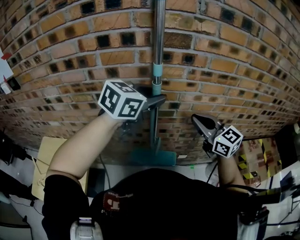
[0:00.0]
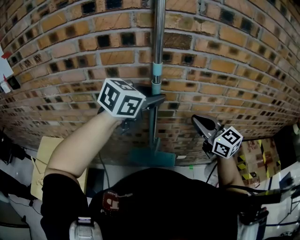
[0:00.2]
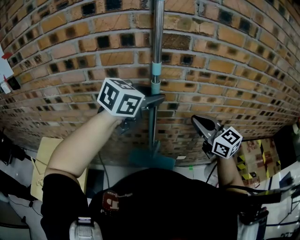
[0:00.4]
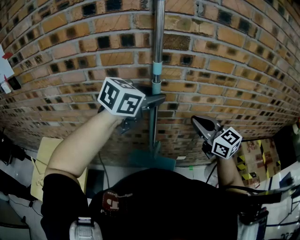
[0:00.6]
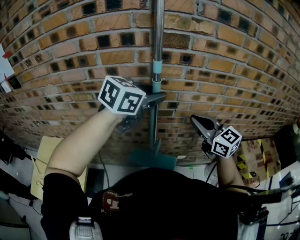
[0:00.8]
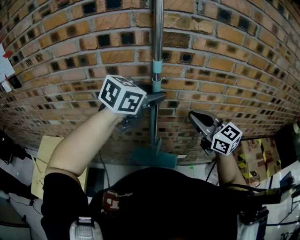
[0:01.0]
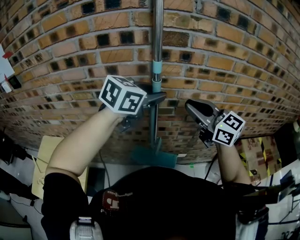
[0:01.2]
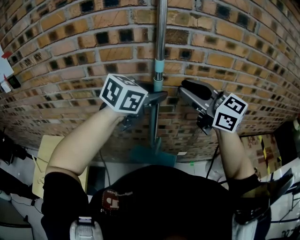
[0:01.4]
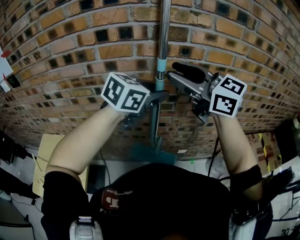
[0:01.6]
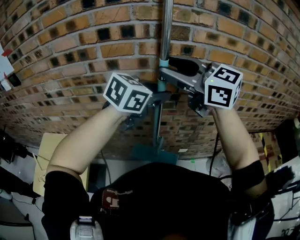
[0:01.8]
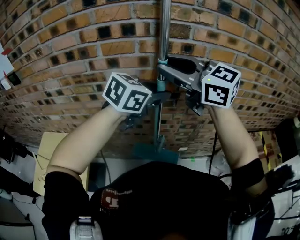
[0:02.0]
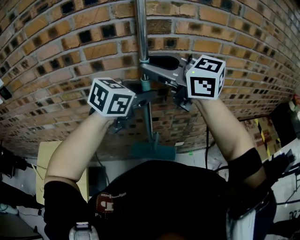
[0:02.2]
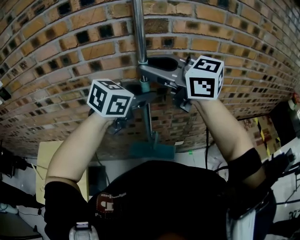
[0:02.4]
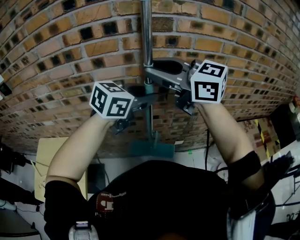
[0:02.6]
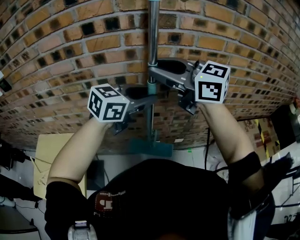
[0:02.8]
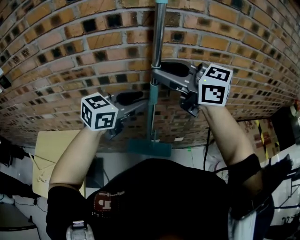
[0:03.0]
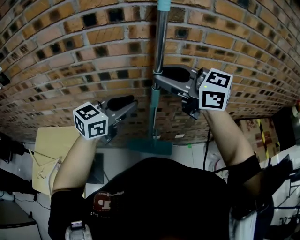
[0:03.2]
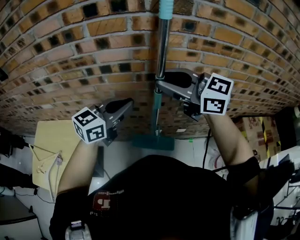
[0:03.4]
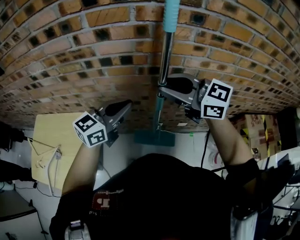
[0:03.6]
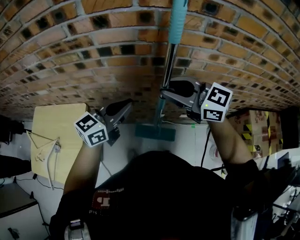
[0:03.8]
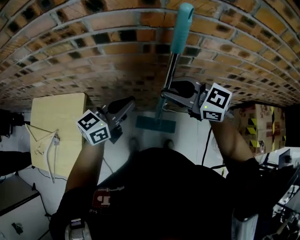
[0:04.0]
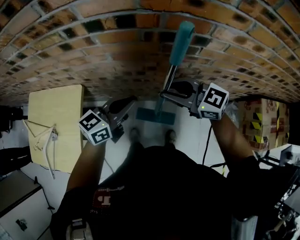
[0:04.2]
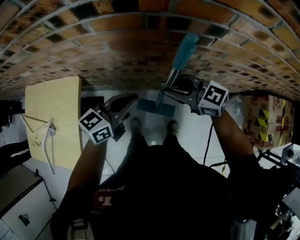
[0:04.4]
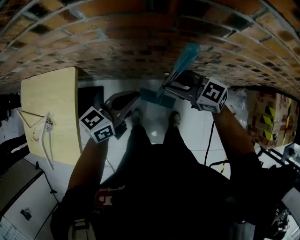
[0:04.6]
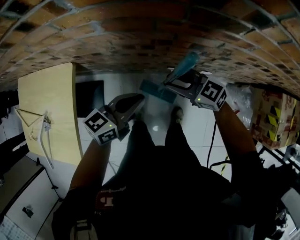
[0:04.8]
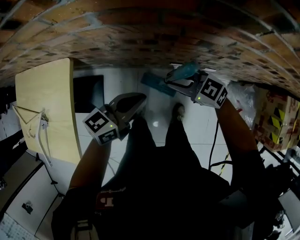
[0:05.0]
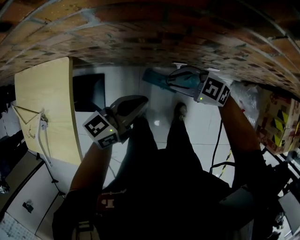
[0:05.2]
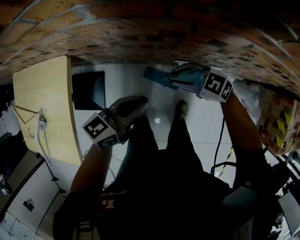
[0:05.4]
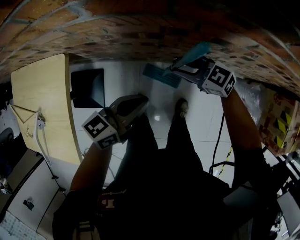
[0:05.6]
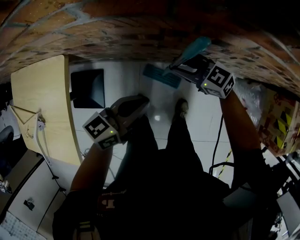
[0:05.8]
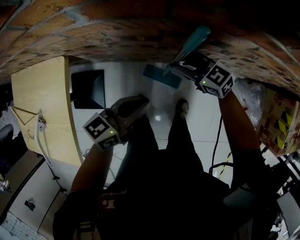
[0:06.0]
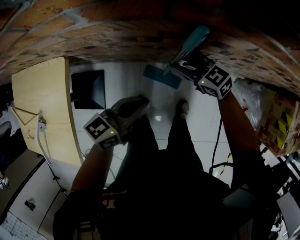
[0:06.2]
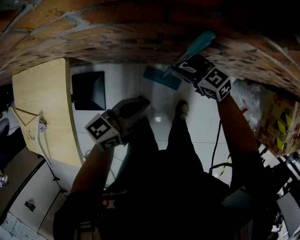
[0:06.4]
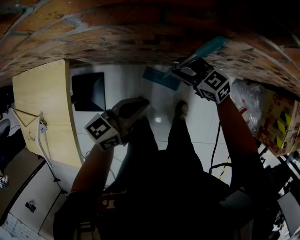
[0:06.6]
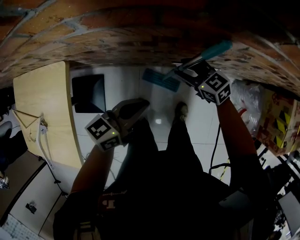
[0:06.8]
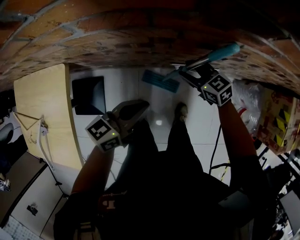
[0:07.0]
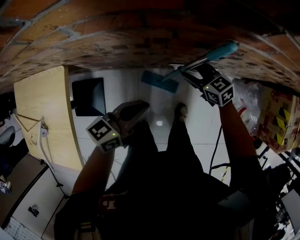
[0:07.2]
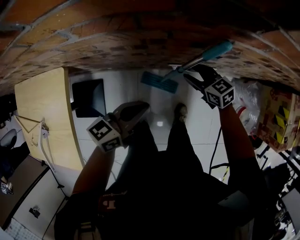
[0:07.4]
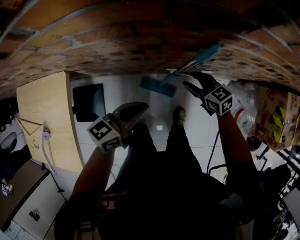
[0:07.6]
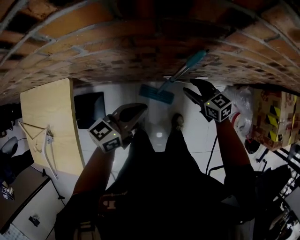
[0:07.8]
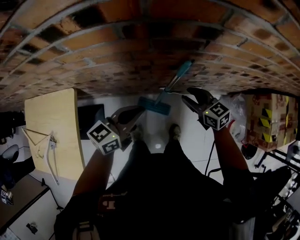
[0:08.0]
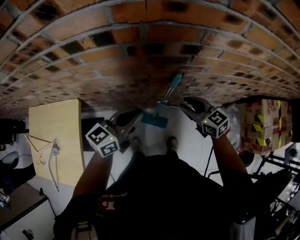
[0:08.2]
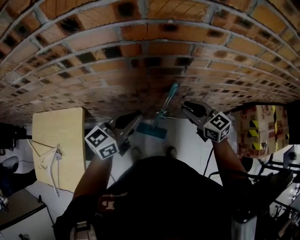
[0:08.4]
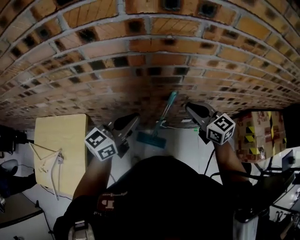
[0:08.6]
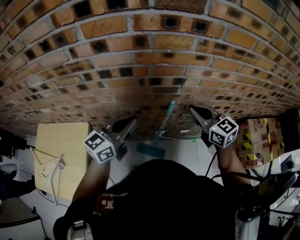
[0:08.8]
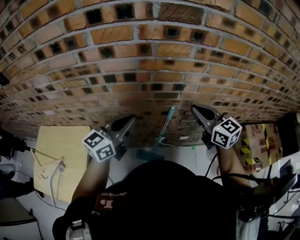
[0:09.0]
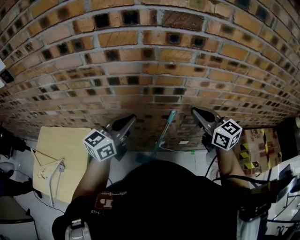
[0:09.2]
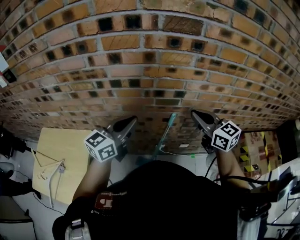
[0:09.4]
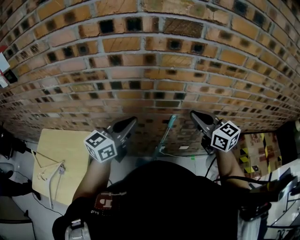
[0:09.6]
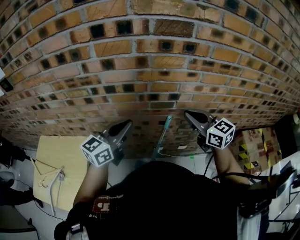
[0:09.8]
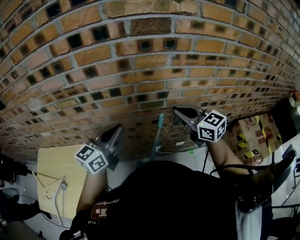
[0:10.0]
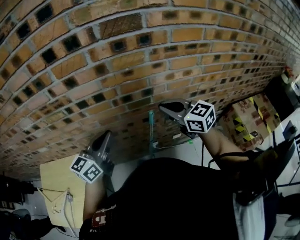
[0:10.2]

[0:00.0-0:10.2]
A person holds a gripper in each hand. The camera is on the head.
0:00.0 to 0:01.4: The right gripper shifts some 15 cm upward and to the left, and opens.
0:01.4 to 0:03.0: The left gripper heads downward, covering some 5 cm; the right gripper is displaced to the left by approximately 5 cm.
0:03.0 to 0:04.4: The two grippers go approximately 35 cm downward. The right gripper turns by roughly 20 degrees. The left gripper rotates some 30 degrees, and closes.
0:04.4 to 0:05.8: The right gripper travels downward by about 20 cm, while the left gripper shifts approximately 15 cm downward.
0:05.8 to 0:07.2: The right gripper moves approximately 10 cm, rotates approximately 20 degrees, and opens.
0:07.2 to 0:08.8: The grippers both shift upward by about 35 cm. The left gripper rotates approximately 30 degrees. The right gripper turns by roughly 30 degrees, and closes.
0:08.8 to 0:10.2: The right gripper shifts by about 5 cm.

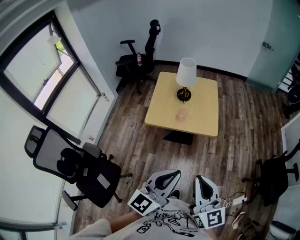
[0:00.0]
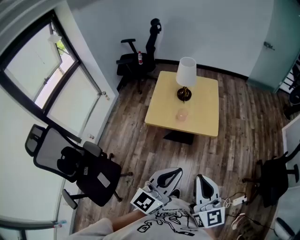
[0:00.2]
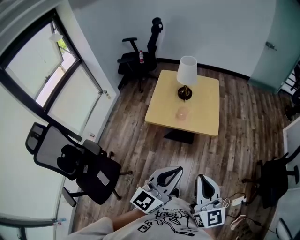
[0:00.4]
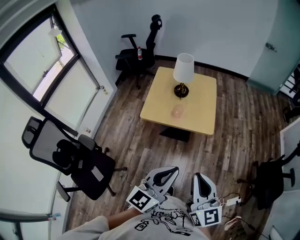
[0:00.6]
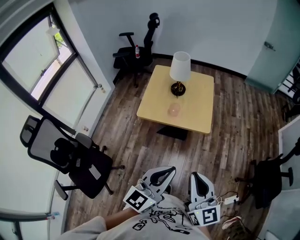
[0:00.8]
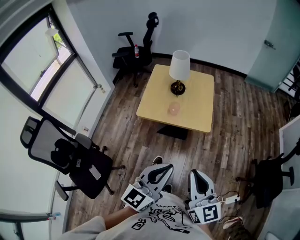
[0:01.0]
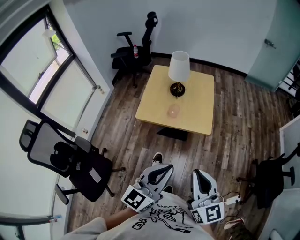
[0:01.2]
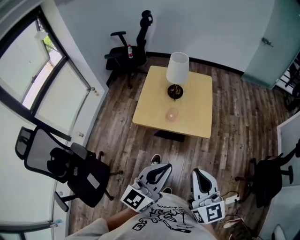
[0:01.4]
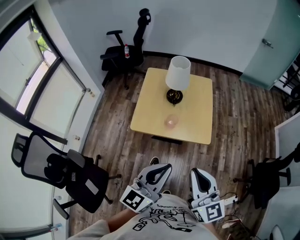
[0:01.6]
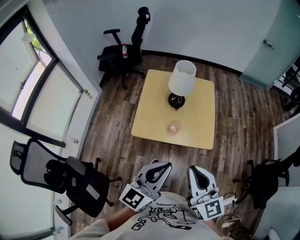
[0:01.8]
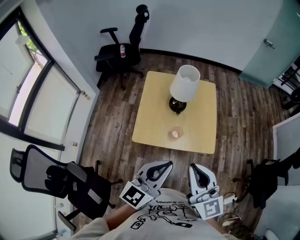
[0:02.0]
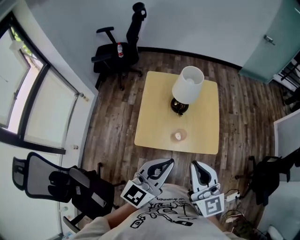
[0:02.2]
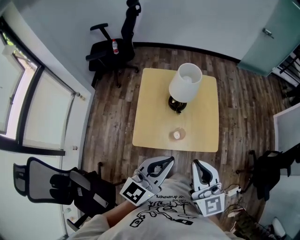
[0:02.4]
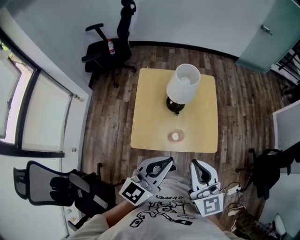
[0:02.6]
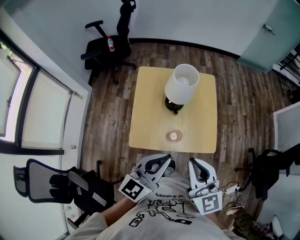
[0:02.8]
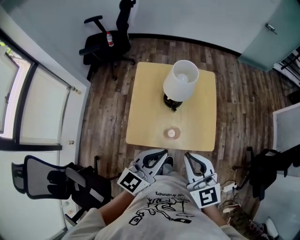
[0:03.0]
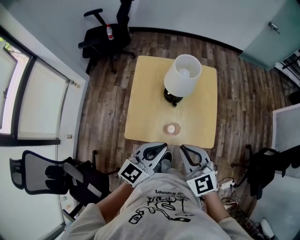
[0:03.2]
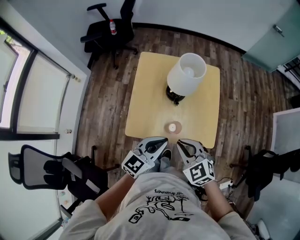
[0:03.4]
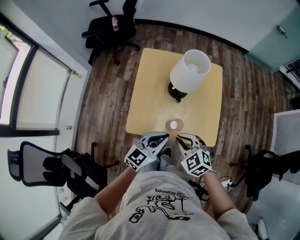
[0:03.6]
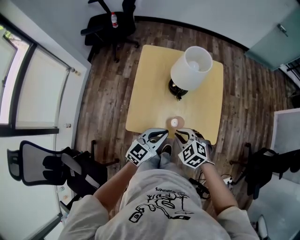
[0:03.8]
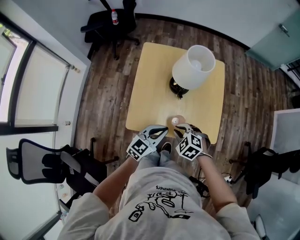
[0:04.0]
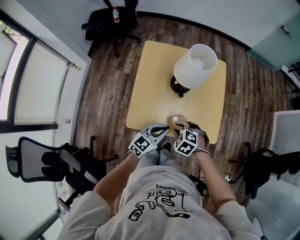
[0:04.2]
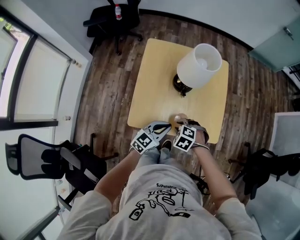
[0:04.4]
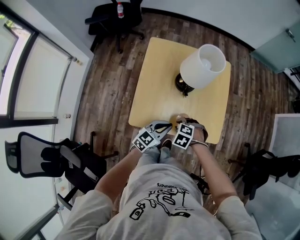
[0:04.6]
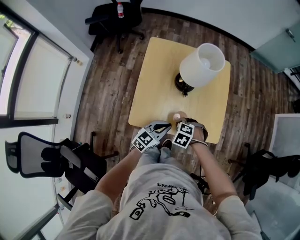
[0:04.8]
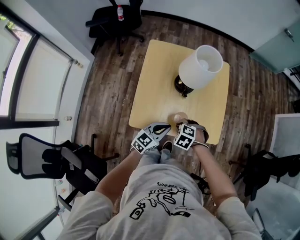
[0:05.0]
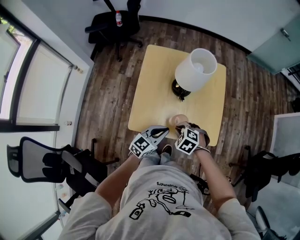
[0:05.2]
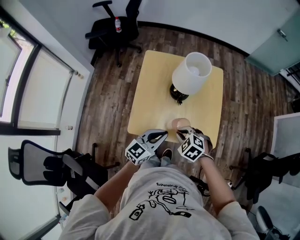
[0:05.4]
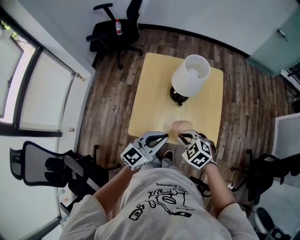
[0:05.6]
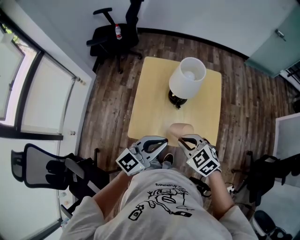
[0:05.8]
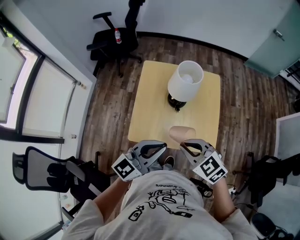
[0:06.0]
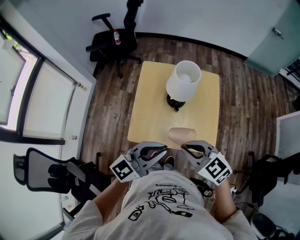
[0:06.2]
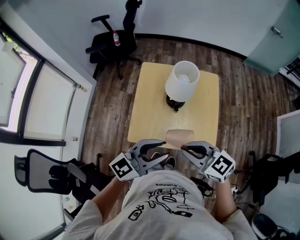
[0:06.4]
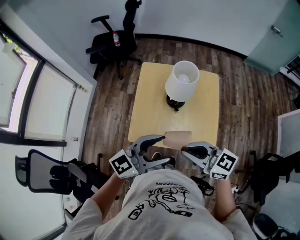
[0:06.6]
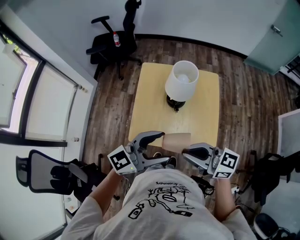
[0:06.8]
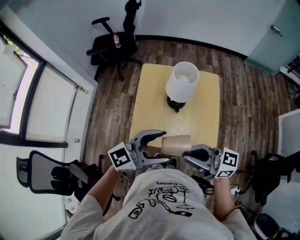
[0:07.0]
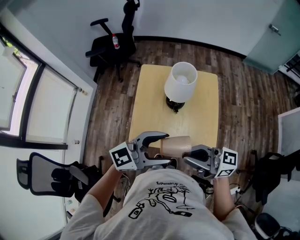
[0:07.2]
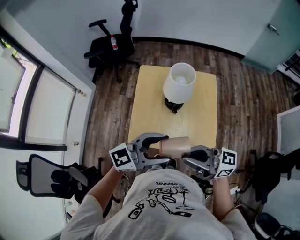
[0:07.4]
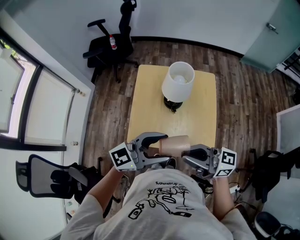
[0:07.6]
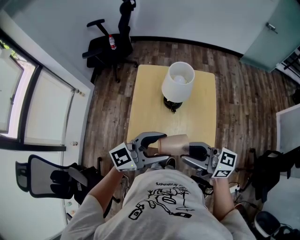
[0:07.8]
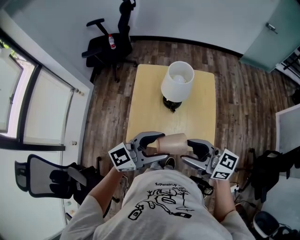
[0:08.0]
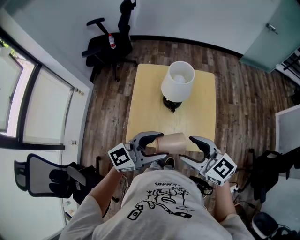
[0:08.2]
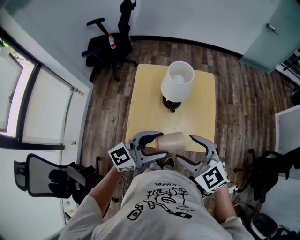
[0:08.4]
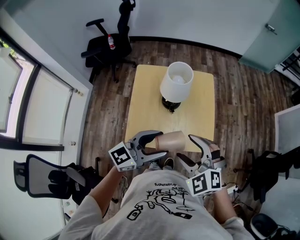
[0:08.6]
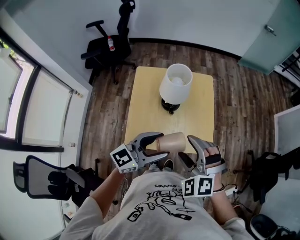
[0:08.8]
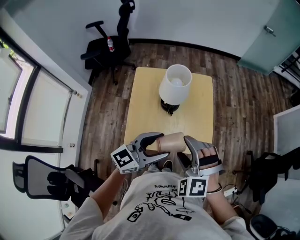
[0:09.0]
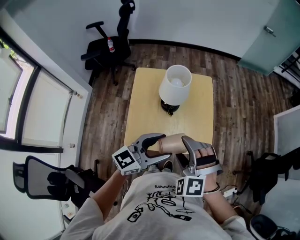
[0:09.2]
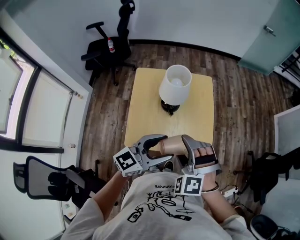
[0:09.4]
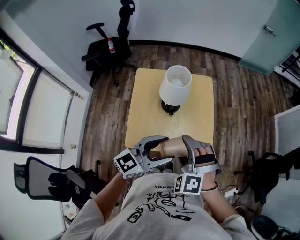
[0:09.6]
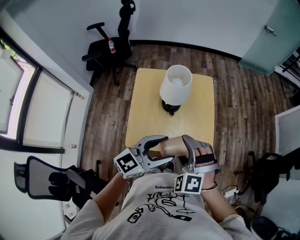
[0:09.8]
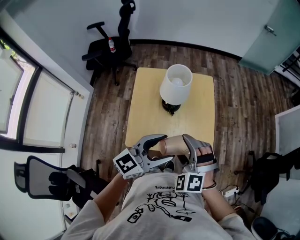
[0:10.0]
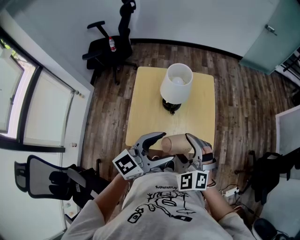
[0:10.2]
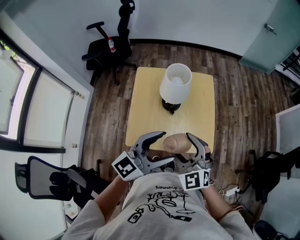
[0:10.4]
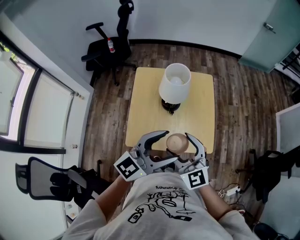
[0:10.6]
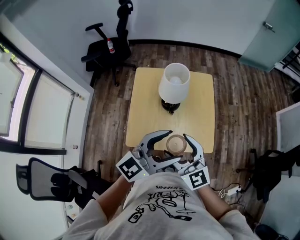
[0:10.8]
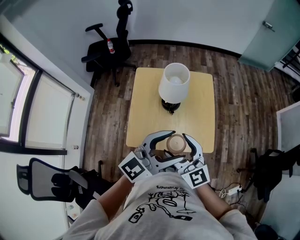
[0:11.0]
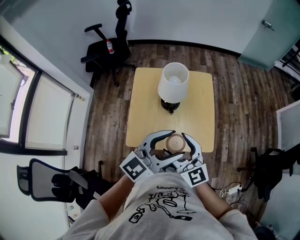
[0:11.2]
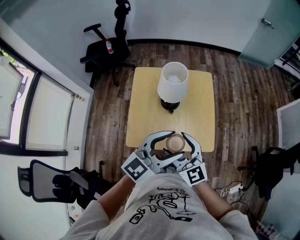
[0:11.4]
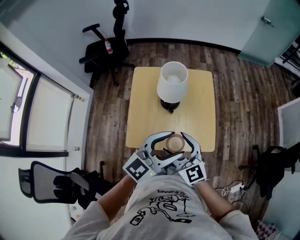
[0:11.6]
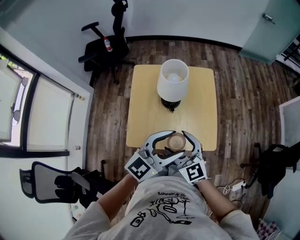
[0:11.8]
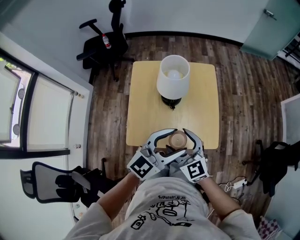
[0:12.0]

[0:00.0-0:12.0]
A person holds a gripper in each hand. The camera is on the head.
0:00.0 to 0:01.6: Both grippers travel together forward, approximately 15 cm.
0:01.6 to 0:03.0: The right gripper is displaced forward and to the left by approximately 25 cm, while the left gripper shifts approximately 20 cm forward.
0:03.0 to 0:04.4: Both grippers travel together downward, about 30 cm. The right gripper tips its fingers downward by approximately 60 degrees.
0:04.4 to 0:06.0: The grippers both shift upward by some 25 cm. The right gripper tips its fingers upward by some 40 degrees, while the left gripper turns by about 20 degrees.
0:06.0 to 0:07.6: The left gripper opens. The right gripper travels upward by some 10 cm, and points its fingers some 50 degrees further upward.
0:07.6 to 0:09.0: The right gripper moves downward, about 5 cm, angles its fingers downward, by approximately 50 degrees, and opens up.
0:09.0 to 0:10.4: The left gripper shifts by roughly 5 cm; the right gripper changes its angle by some 40 degrees.
0:10.4 to 0:12.0: Both grippers move downward, roughly 5 cm. The right gripper changes its angle by roughly 20 degrees.

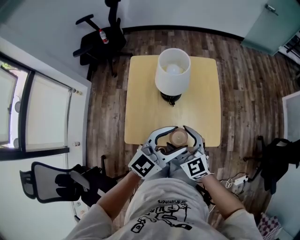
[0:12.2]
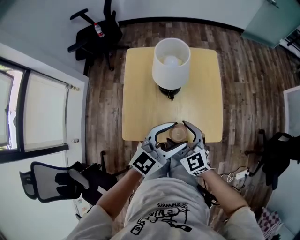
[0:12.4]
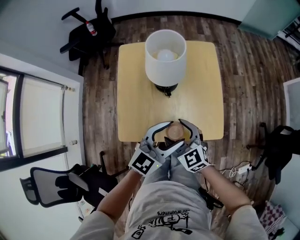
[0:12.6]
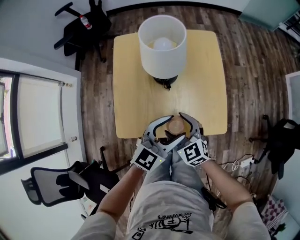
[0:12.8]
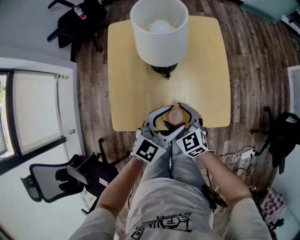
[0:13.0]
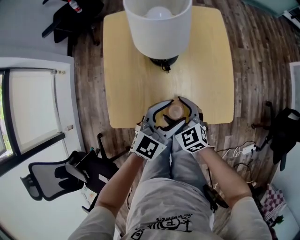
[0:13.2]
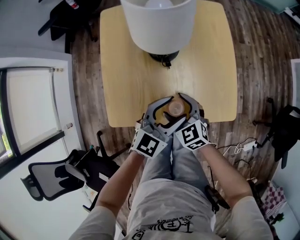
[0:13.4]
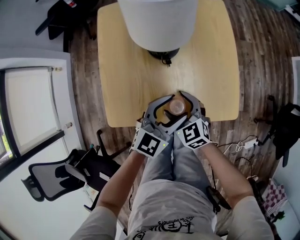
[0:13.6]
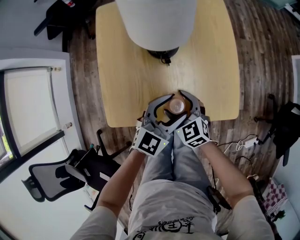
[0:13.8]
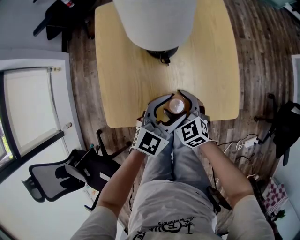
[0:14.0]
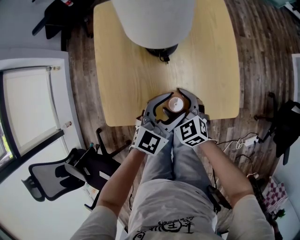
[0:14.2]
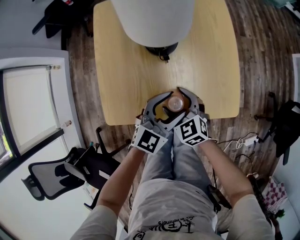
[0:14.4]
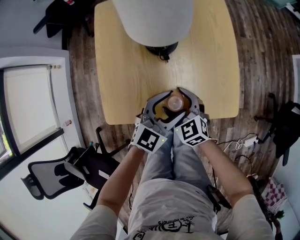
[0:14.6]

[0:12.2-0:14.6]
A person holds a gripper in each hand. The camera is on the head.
0:12.2 to 0:13.4: The grippers both shift downward by about 20 cm.
0:13.4 to 0:14.6: The grippers move only a little.
